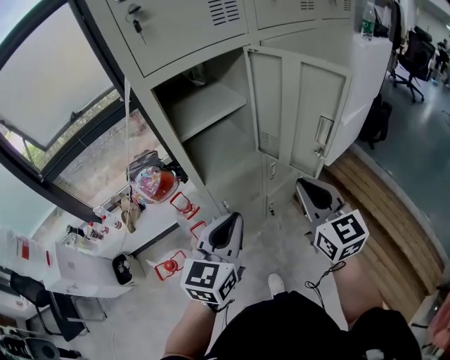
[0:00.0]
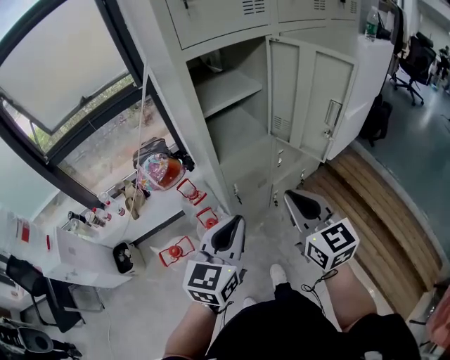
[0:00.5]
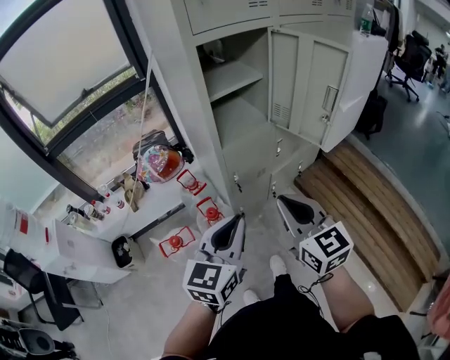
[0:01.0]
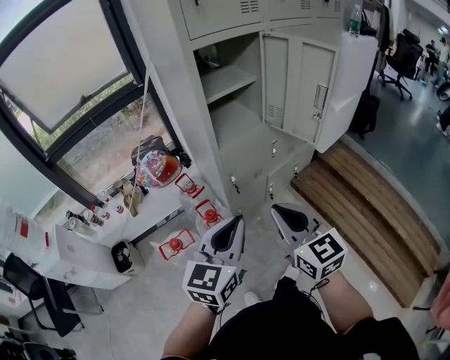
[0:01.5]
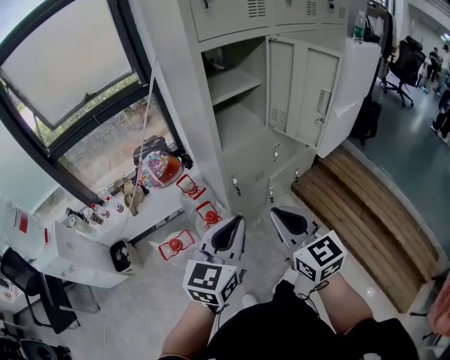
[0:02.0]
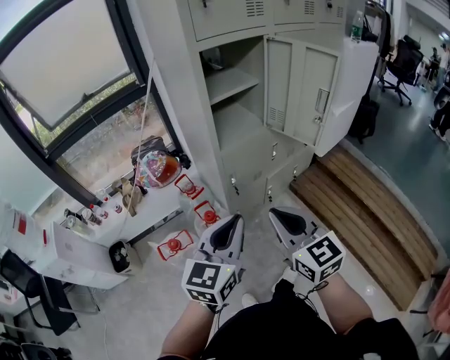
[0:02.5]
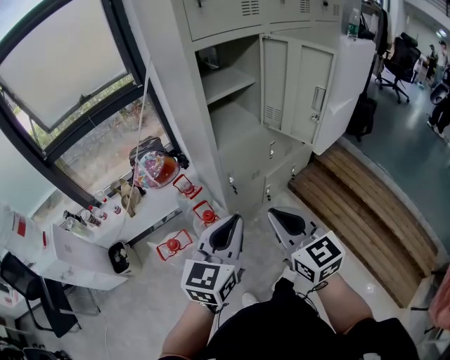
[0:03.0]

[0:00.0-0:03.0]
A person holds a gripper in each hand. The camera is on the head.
0:00.0 to 0:01.5: Both grippers move backward and to the left, some 20 cm.
0:01.5 to 0:03.0: The grippers stay close to where they were, moving slightly.

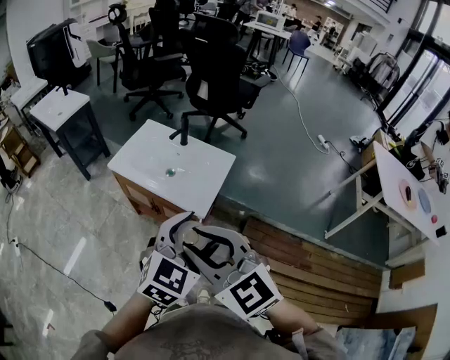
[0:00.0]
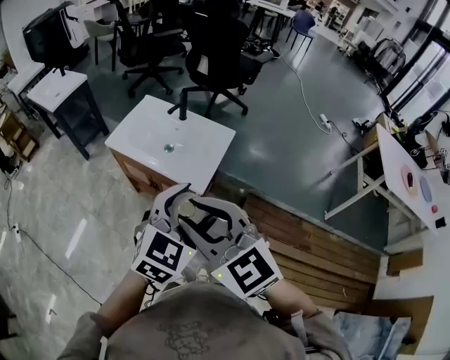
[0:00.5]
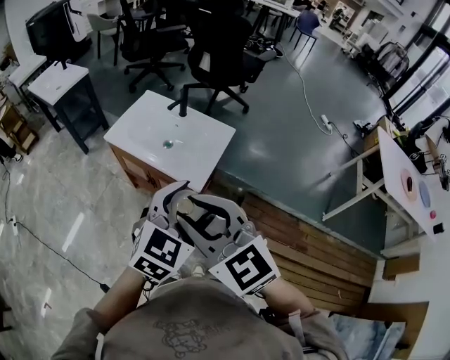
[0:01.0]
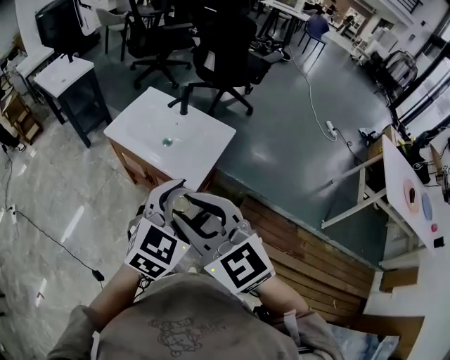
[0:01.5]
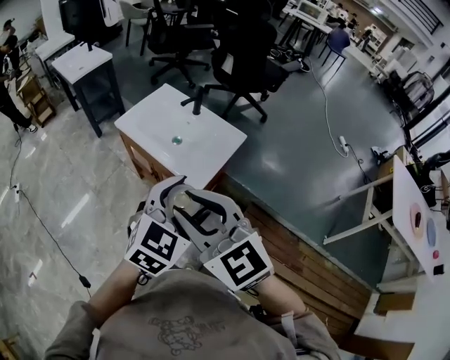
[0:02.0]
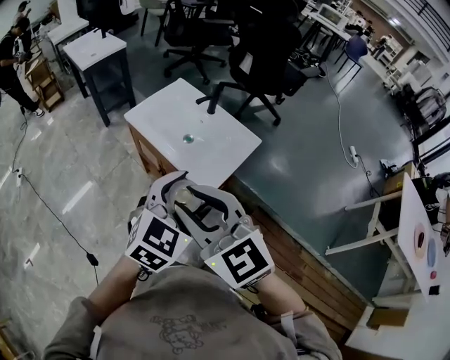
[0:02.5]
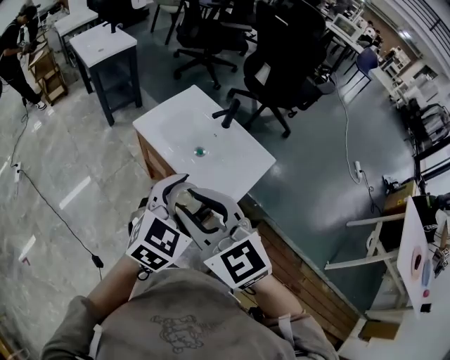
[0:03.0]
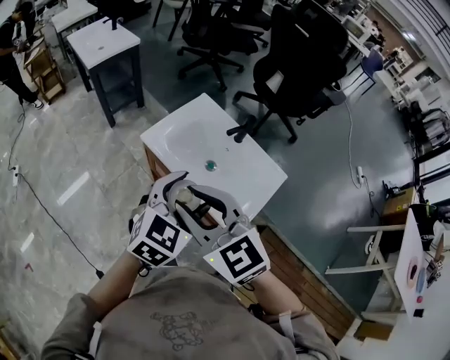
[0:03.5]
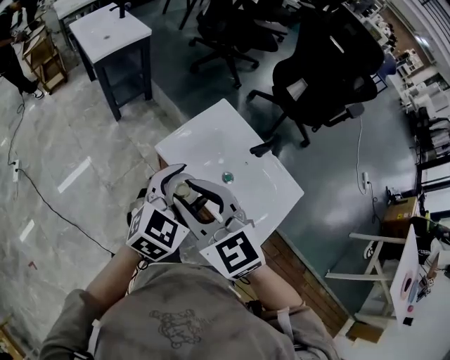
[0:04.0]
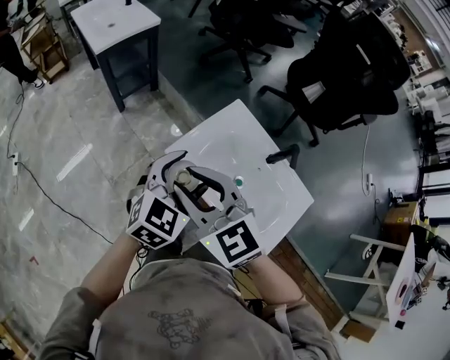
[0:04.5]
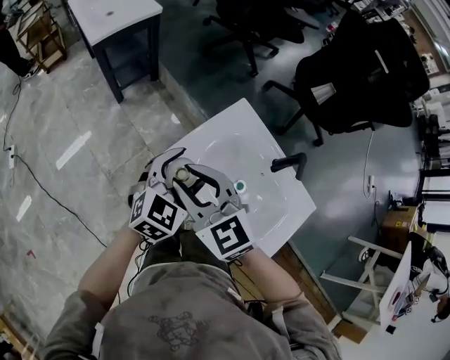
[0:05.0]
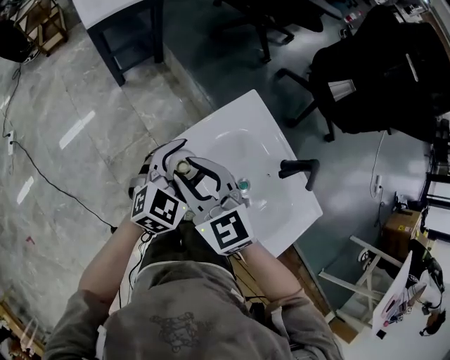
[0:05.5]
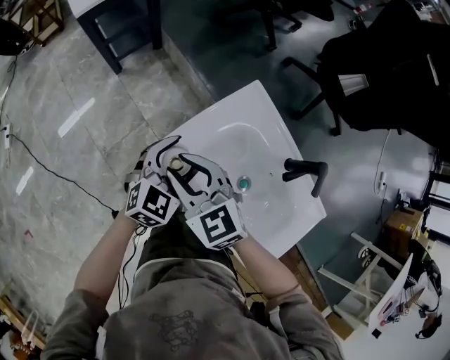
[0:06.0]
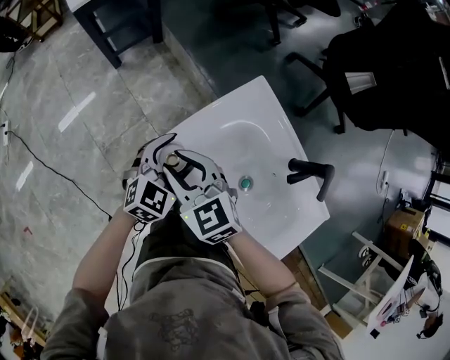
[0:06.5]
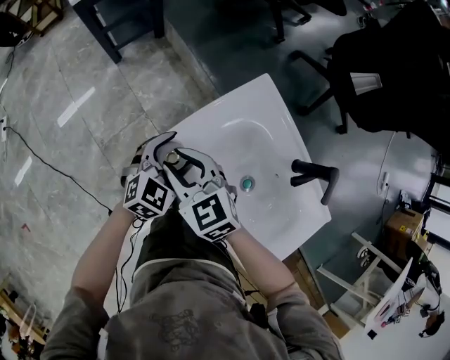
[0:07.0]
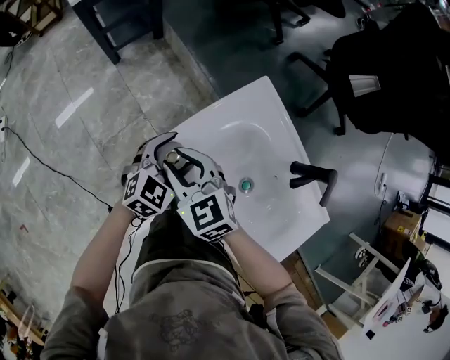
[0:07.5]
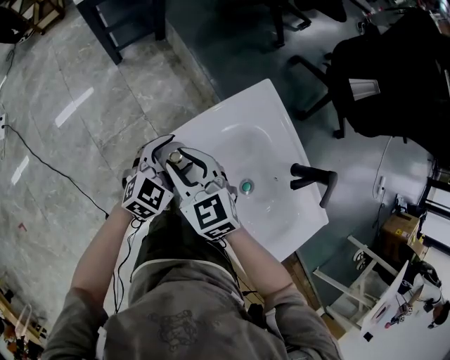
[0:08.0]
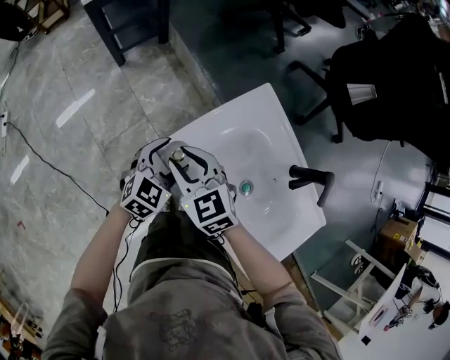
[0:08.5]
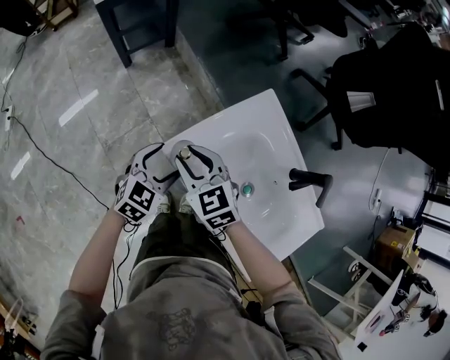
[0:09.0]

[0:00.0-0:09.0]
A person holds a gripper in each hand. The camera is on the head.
0:00.0 to 0:02.0: The right gripper shifts by some 5 cm; the left gripper changes place by approximately 5 cm.
0:02.0 to 0:04.5: The pair of grippers is taken forward and to the left, roughly 50 cm.
0:04.5 to 0:07.0: Both grippers move downward and forward, about 30 cm.
0:07.0 to 0:09.0: The left gripper moves to the left, some 5 cm.

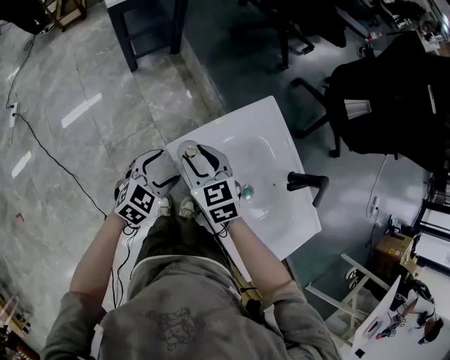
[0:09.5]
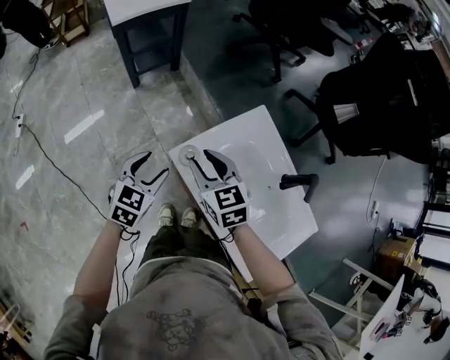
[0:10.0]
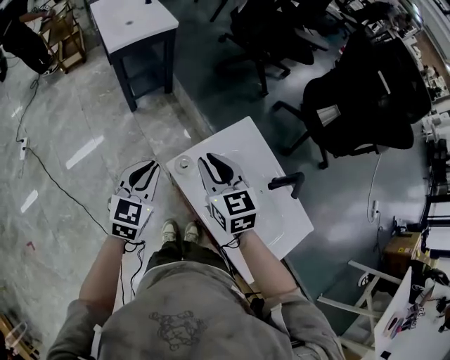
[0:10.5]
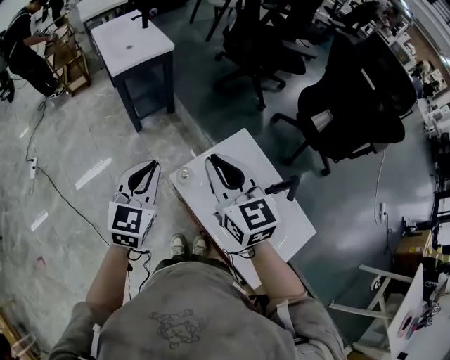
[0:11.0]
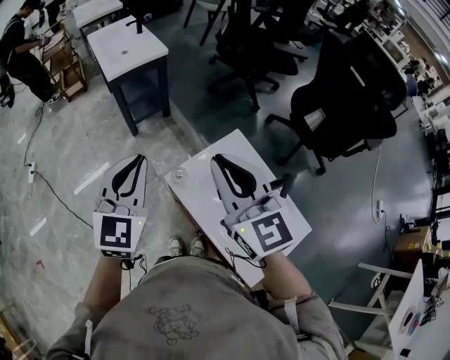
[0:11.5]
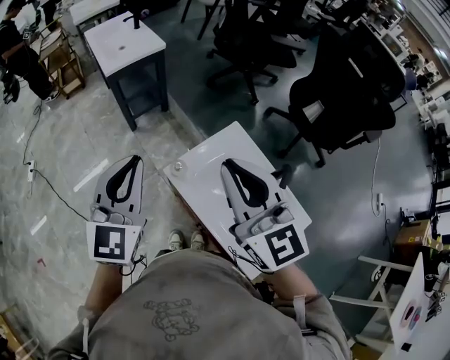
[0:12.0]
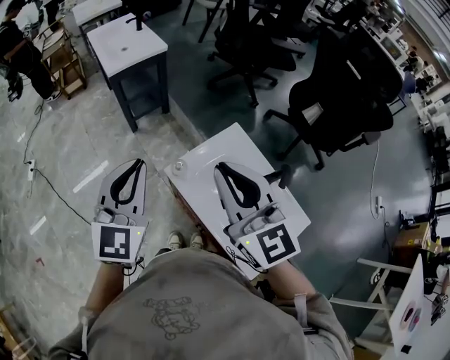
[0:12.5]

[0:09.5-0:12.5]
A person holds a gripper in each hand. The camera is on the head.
0:09.5 to 0:11.0: Both grippers move upward, approximately 30 cm. The right gripper swivels approximately 30 degrees, and closes up; the left gripper rotates about 30 degrees, and closes up.
0:11.0 to 0:12.5: The left gripper shifts roughly 10 cm upward and backward, while the right gripper travels backward and upward by some 15 cm.

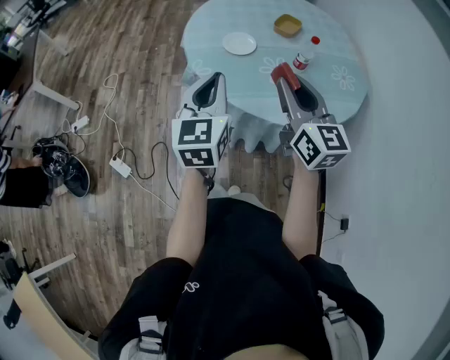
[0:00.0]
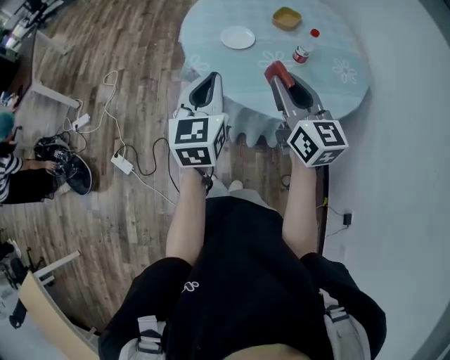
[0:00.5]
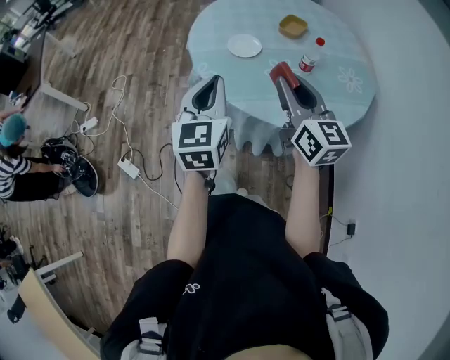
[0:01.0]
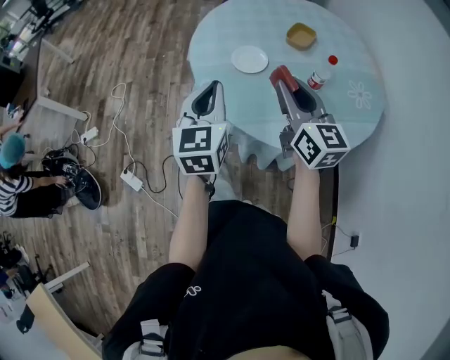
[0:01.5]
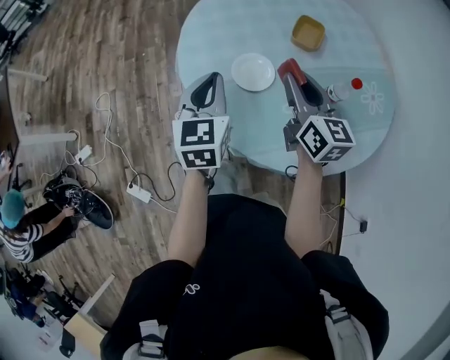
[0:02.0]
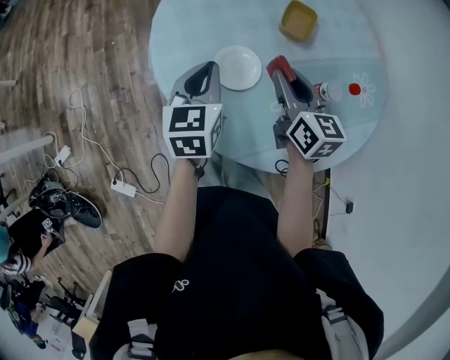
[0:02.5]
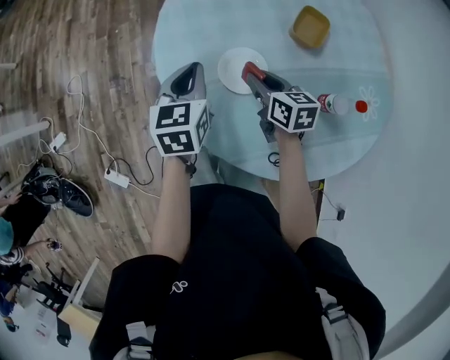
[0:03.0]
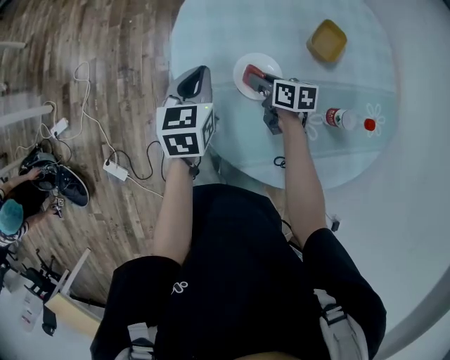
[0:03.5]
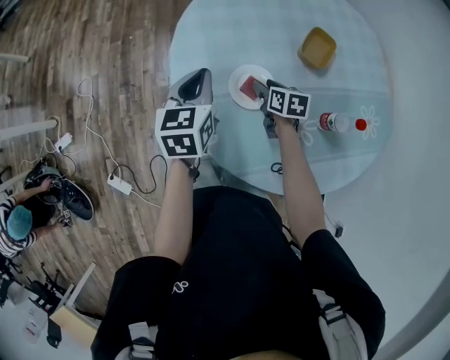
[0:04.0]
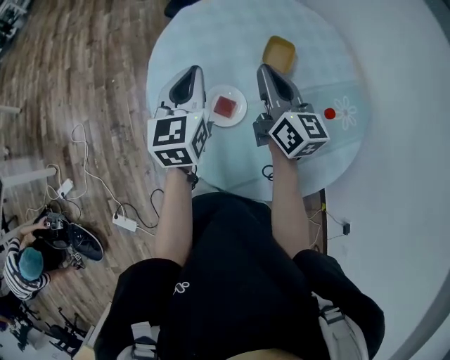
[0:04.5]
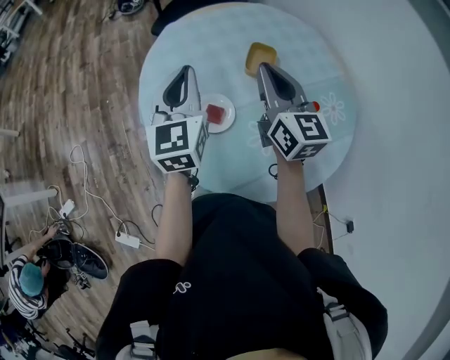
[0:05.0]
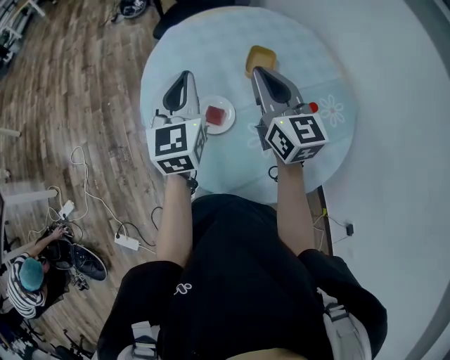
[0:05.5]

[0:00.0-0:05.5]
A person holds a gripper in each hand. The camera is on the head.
0:00.0 to 0:02.0: The grippers both shift forward by roughly 35 cm.
0:02.0 to 0:03.5: The left gripper shifts approximately 15 cm downward and forward, while the right gripper travels downward and forward by some 30 cm, and angles its fingers downward, by approximately 30 degrees.
0:03.5 to 0:05.5: The right gripper shifts roughly 35 cm upward, tips its fingers upward by about 40 degrees, and closes its fingers, while the left gripper is displaced upward by about 20 cm, and turns by about 30 degrees.

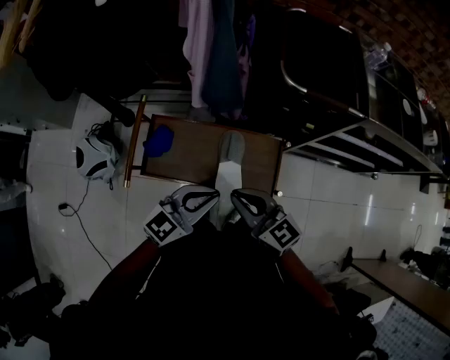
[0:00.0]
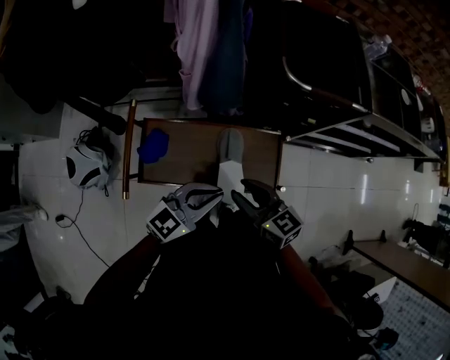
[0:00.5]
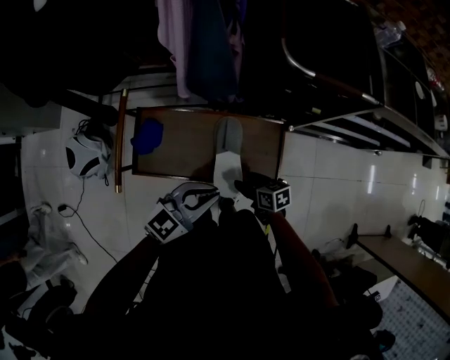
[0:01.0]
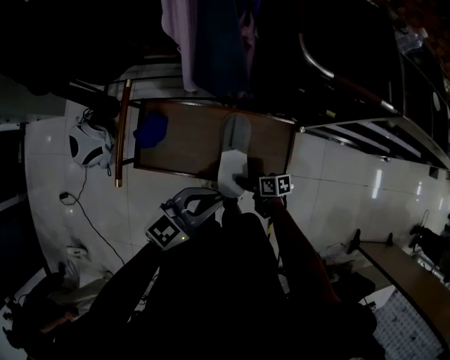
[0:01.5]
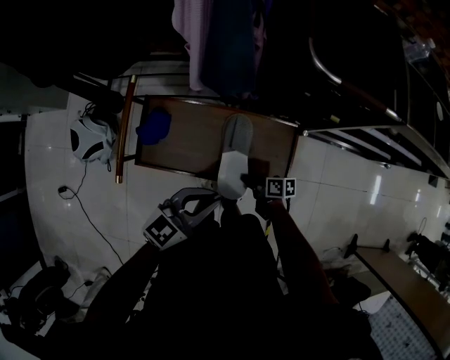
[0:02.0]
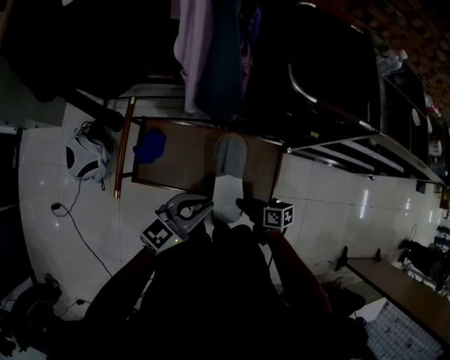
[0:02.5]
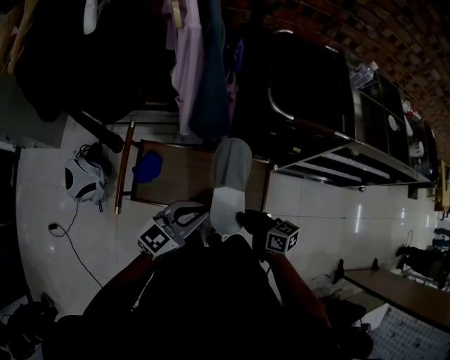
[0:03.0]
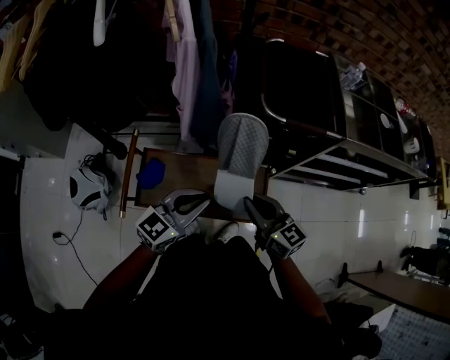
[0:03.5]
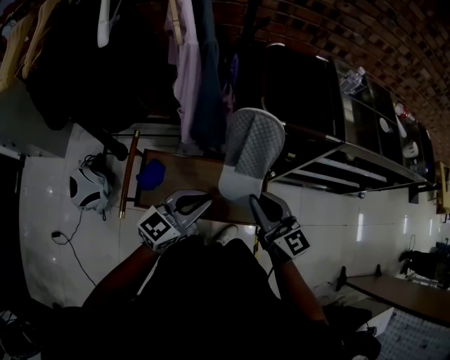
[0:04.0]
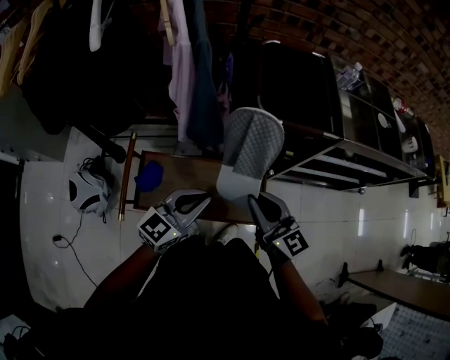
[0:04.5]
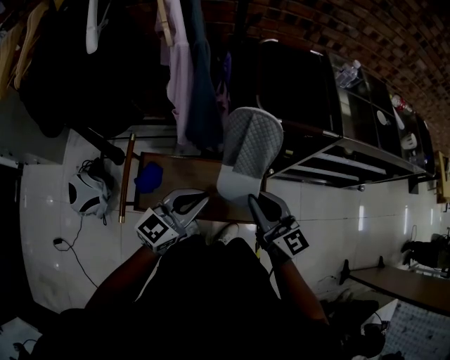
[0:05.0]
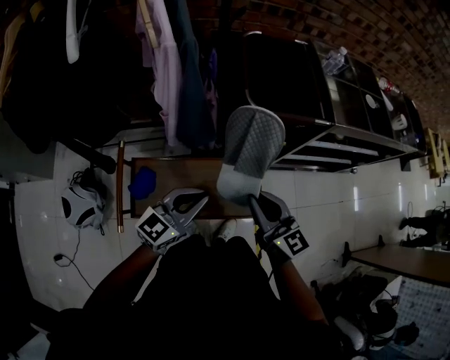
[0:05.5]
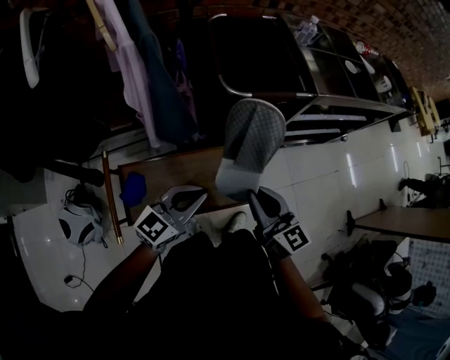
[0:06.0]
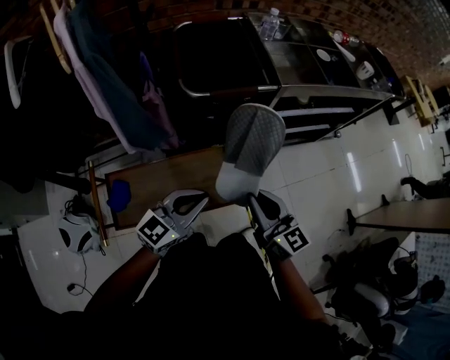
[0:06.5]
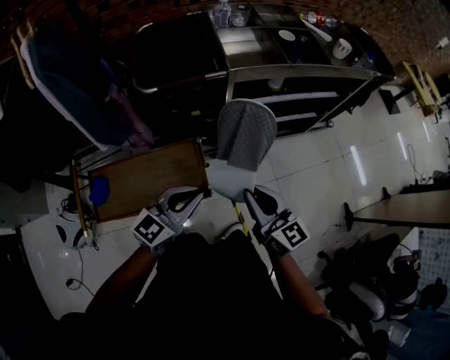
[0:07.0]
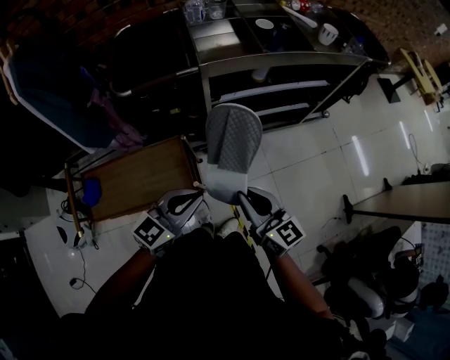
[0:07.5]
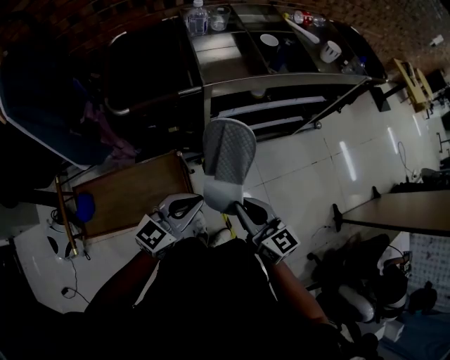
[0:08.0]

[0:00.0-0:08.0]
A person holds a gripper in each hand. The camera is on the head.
0:00.0 to 0:02.0: The left gripper goes roughly 10 cm downward. Meanwhile the right gripper travels downward by some 35 cm, rolls clockwise, seen from behind, by some 60 degrees, and opens and closes again.
0:02.0 to 0:04.0: The right gripper goes roughly 40 cm upward, and rotates some 70 degrees, while the left gripper goes about 15 cm upward.
0:04.0 to 0:06.0: The right gripper changes its angle by about 20 degrees.
0:06.0 to 0:08.0: The grippers both shift to the right by approximately 30 cm.
